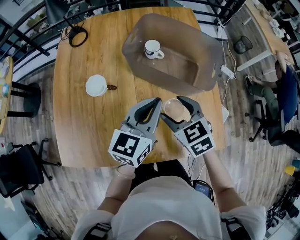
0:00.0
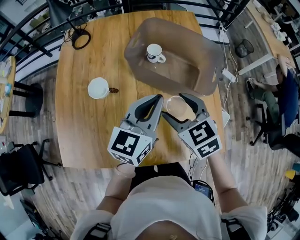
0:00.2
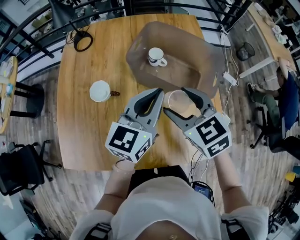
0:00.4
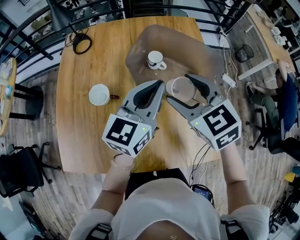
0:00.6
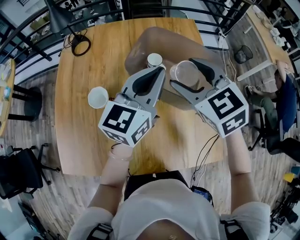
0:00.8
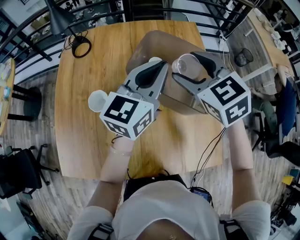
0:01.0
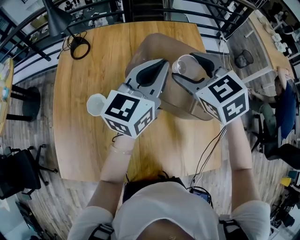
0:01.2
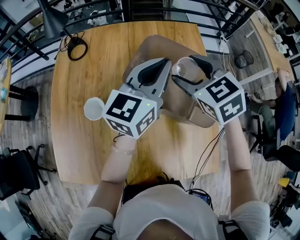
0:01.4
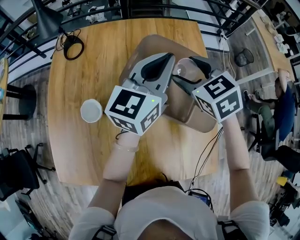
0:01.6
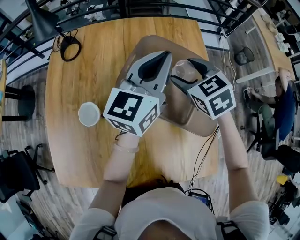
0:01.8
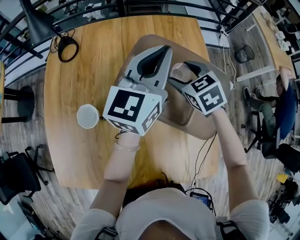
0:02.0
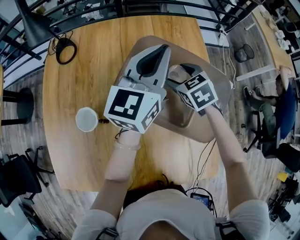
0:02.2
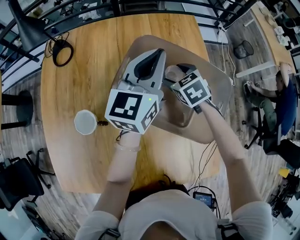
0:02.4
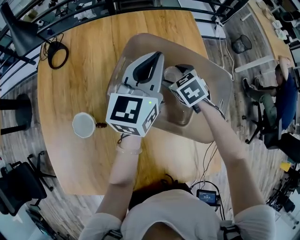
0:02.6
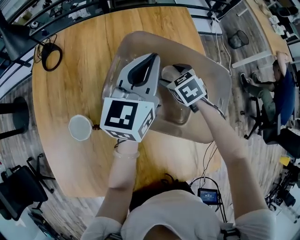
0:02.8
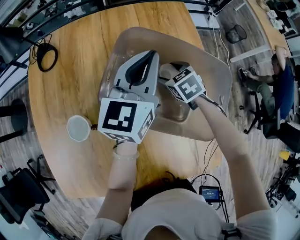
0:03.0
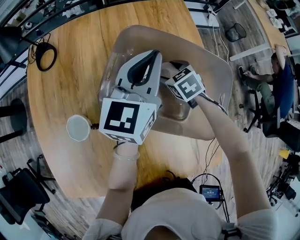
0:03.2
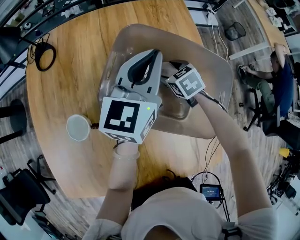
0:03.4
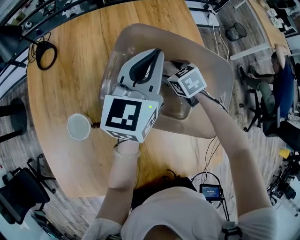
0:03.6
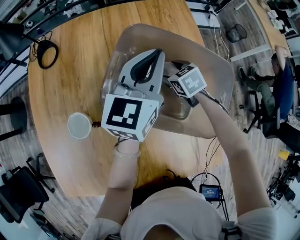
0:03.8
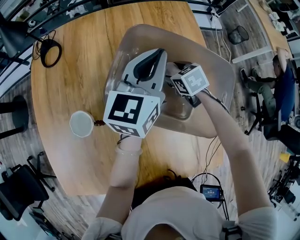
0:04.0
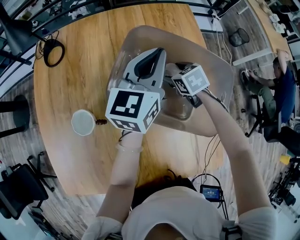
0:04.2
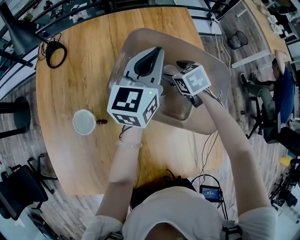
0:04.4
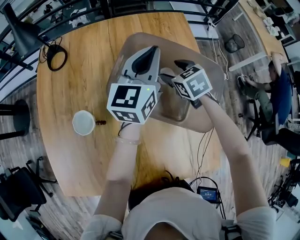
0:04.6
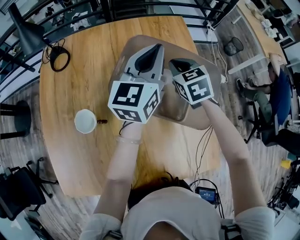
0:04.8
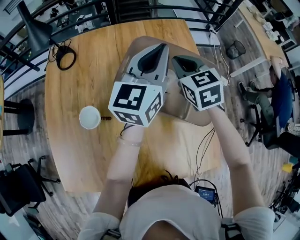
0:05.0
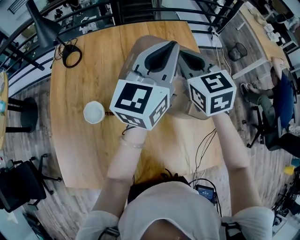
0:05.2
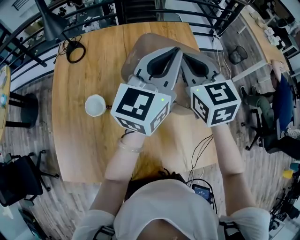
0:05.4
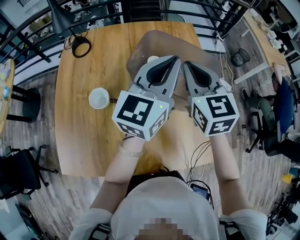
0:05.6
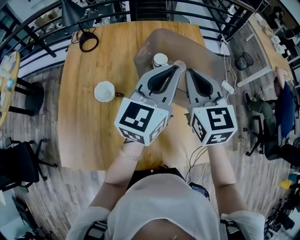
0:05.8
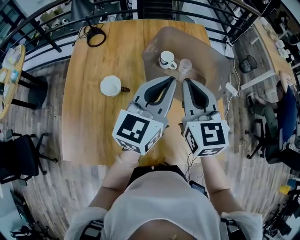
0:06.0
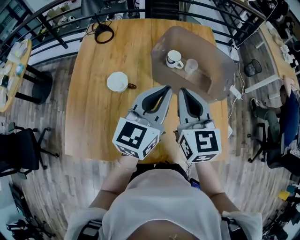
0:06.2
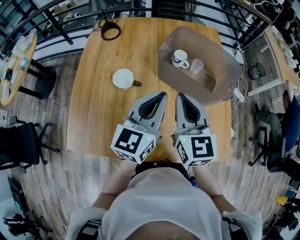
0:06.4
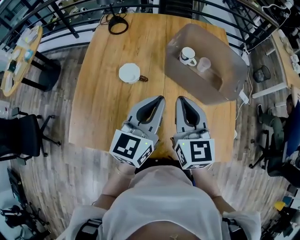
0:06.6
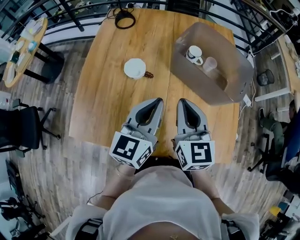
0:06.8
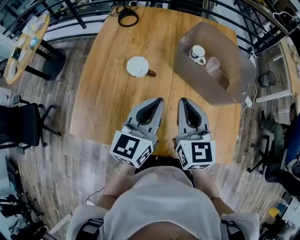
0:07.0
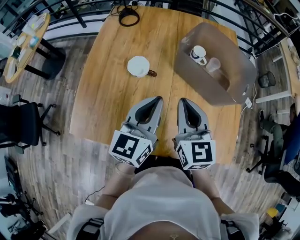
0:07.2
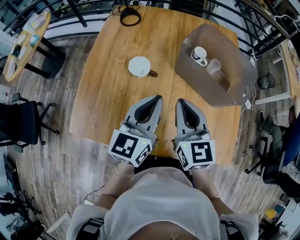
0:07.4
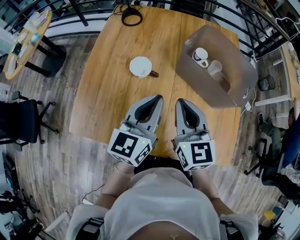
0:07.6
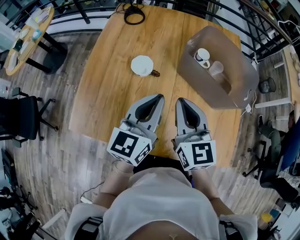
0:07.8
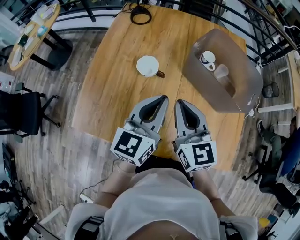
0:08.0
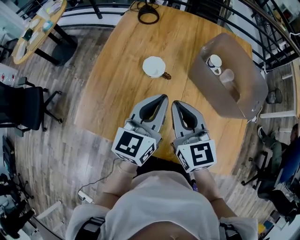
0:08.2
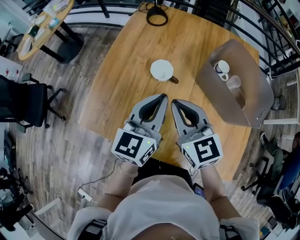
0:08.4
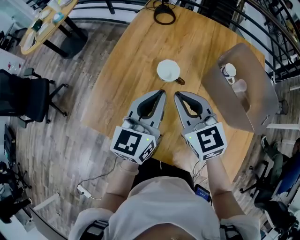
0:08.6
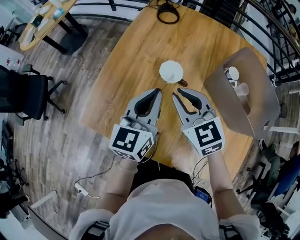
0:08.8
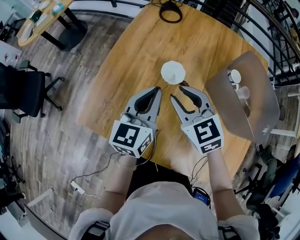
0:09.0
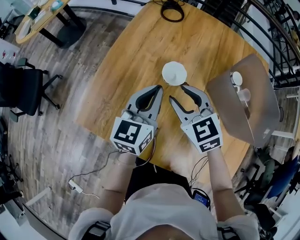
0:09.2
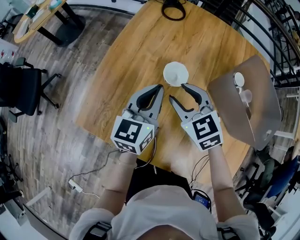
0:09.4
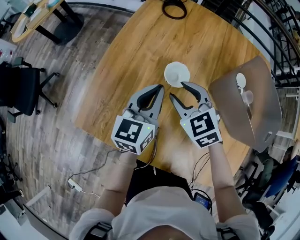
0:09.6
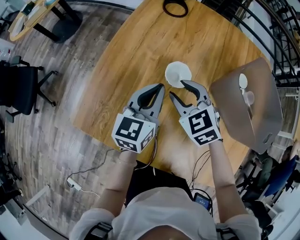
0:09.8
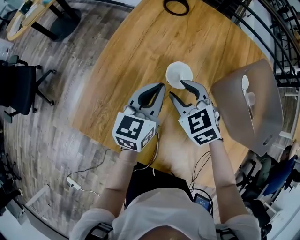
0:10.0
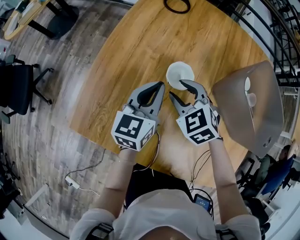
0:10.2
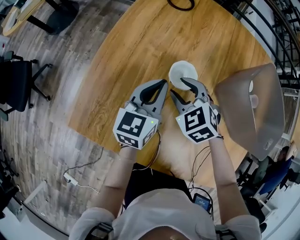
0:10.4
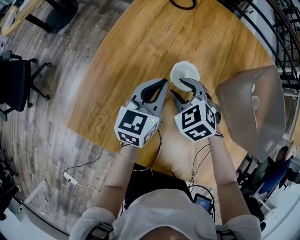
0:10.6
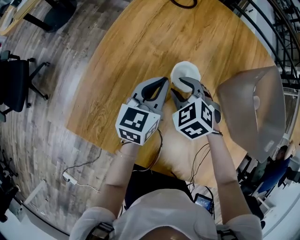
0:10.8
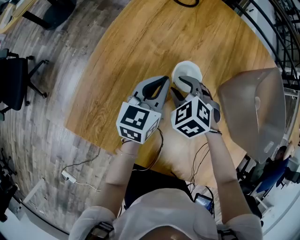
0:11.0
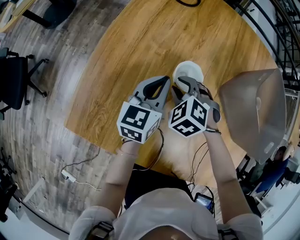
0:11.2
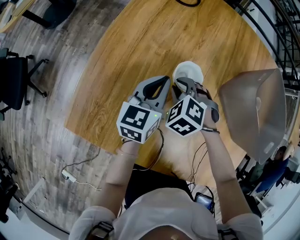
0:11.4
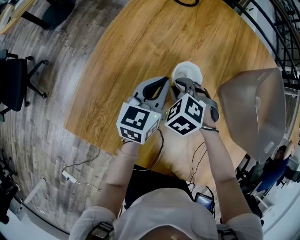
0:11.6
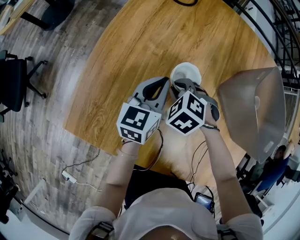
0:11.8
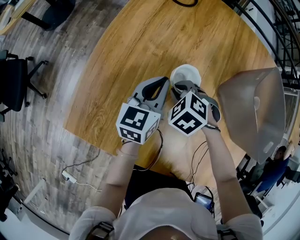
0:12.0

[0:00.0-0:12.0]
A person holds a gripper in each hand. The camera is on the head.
0:00.0 to 0:01.6: The right gripper travels forward by some 25 cm; the left gripper moves forward and upward, approximately 25 cm.
0:01.6 to 0:03.0: The right gripper travels downward by some 20 cm, and changes its angle by some 20 degrees. The left gripper goes approximately 5 cm downward.
0:03.0 to 0:04.4: The grippers stay close to where they were, moving slightly.
0:04.4 to 0:06.0: The left gripper goes some 25 cm backward. The right gripper heads upward and backward, covering approximately 35 cm, angles its fingers upward, by roughly 50 degrees, and closes.
0:06.0 to 0:07.6: Both grippers move to the left, backward and downward, about 15 cm.
0:07.6 to 0:09.0: The left gripper moves to the left and forward, some 15 cm. Meanwhile the right gripper goes some 15 cm to the left, forward and downward, and turns by approximately 40 degrees.
0:09.0 to 0:10.4: The two grippers go about 15 cm downward and forward. The right gripper turns by about 30 degrees.
0:10.4 to 0:12.0: The right gripper goes approximately 5 cm downward, swivels roughly 20 degrees, and closes up.

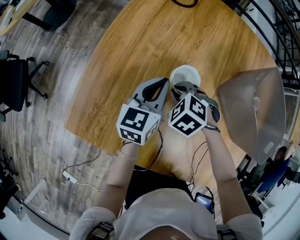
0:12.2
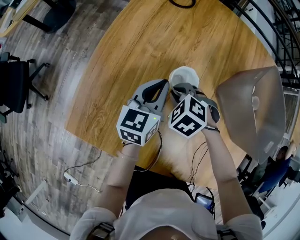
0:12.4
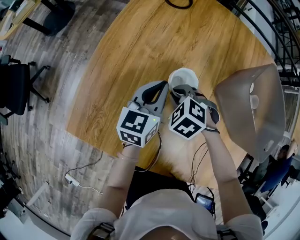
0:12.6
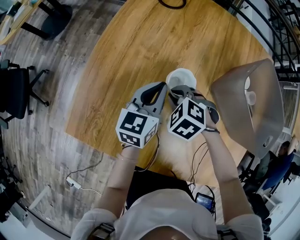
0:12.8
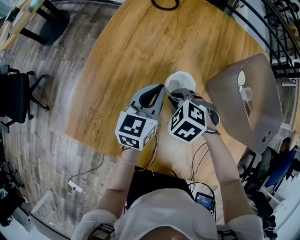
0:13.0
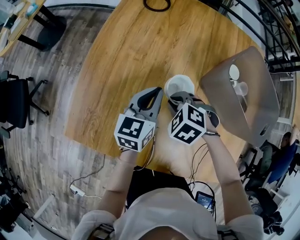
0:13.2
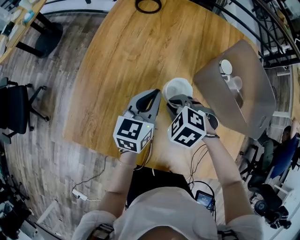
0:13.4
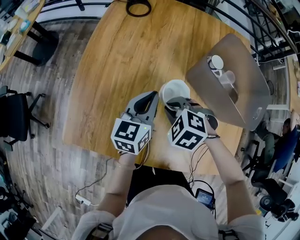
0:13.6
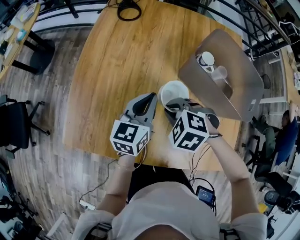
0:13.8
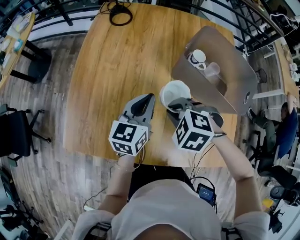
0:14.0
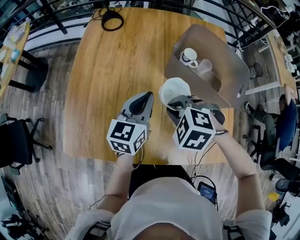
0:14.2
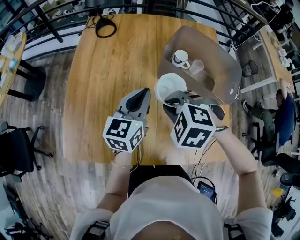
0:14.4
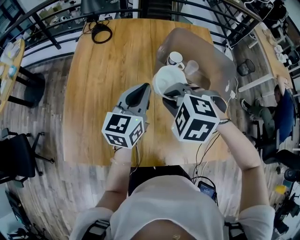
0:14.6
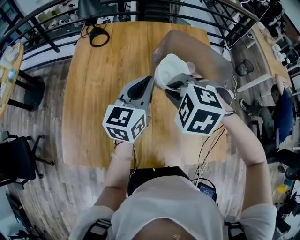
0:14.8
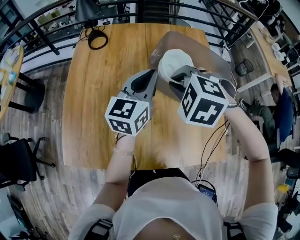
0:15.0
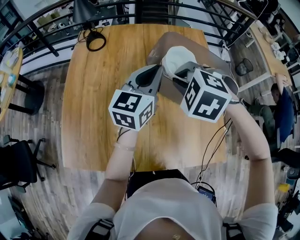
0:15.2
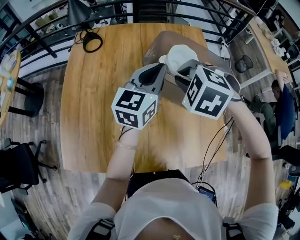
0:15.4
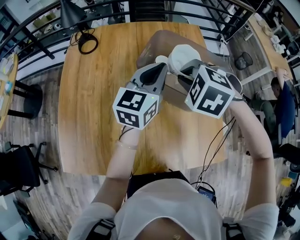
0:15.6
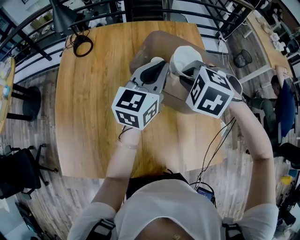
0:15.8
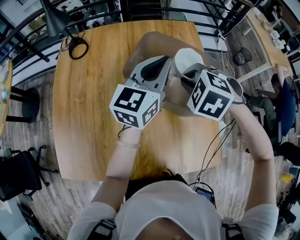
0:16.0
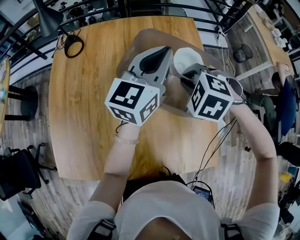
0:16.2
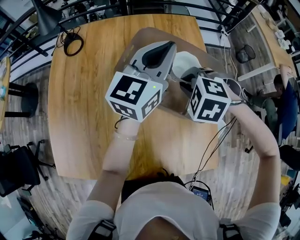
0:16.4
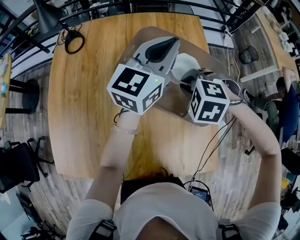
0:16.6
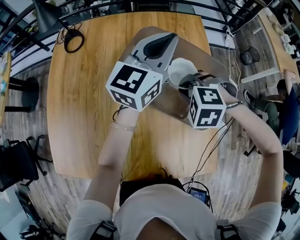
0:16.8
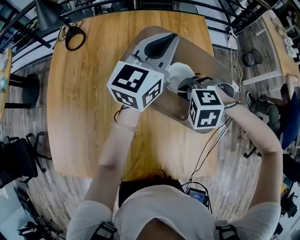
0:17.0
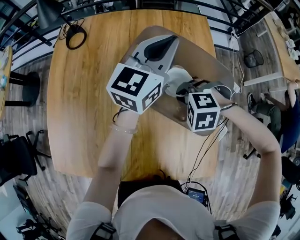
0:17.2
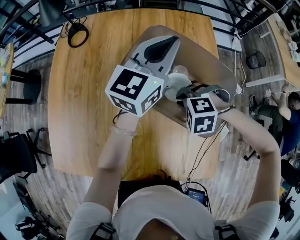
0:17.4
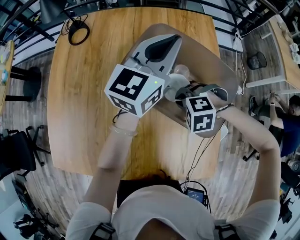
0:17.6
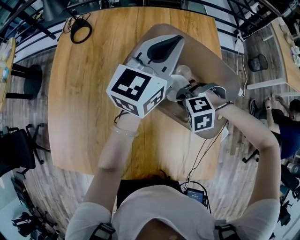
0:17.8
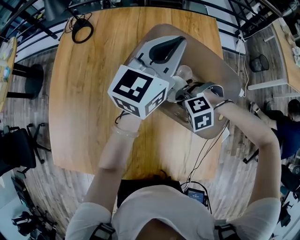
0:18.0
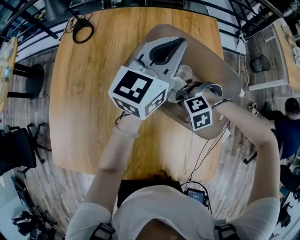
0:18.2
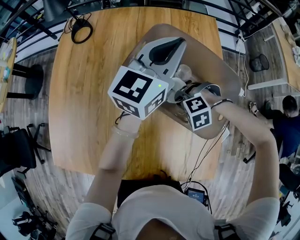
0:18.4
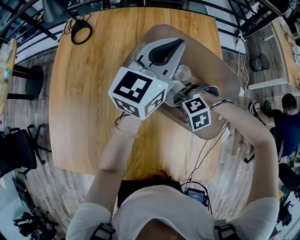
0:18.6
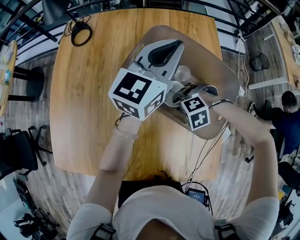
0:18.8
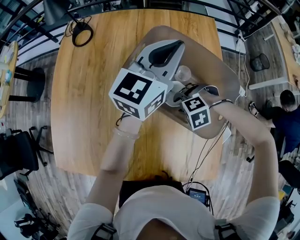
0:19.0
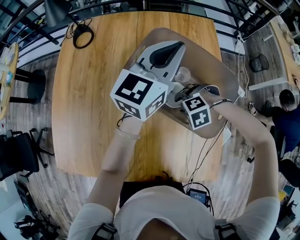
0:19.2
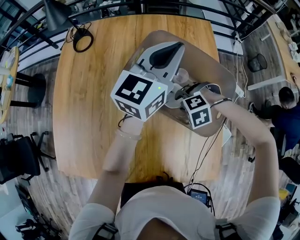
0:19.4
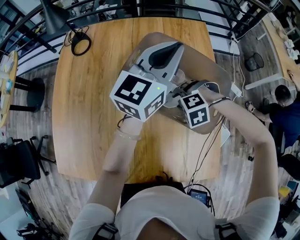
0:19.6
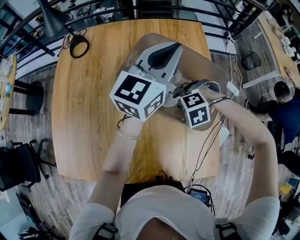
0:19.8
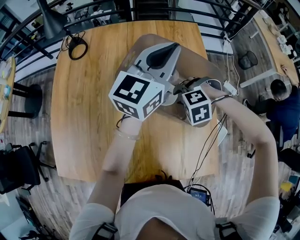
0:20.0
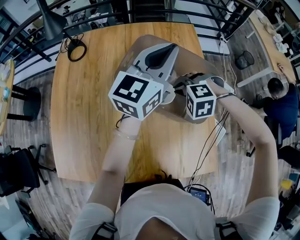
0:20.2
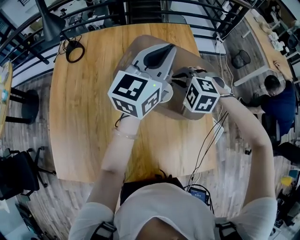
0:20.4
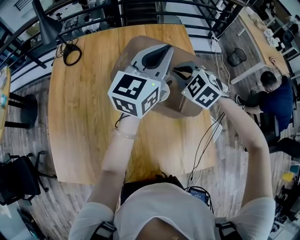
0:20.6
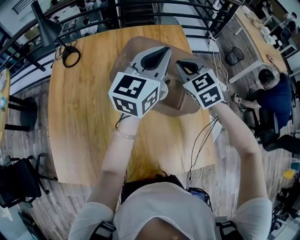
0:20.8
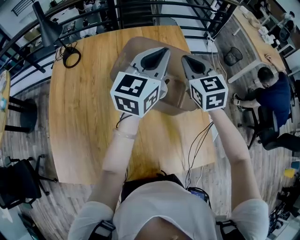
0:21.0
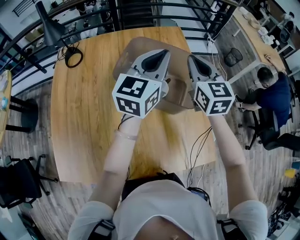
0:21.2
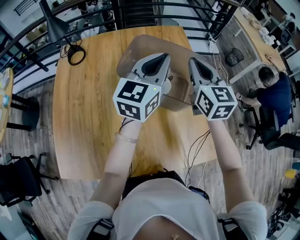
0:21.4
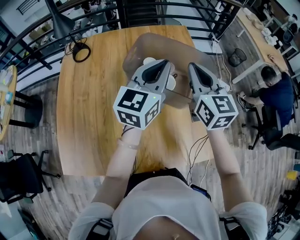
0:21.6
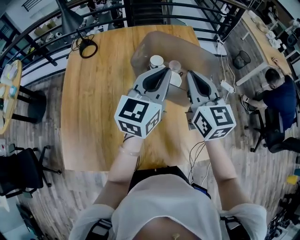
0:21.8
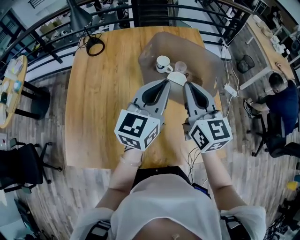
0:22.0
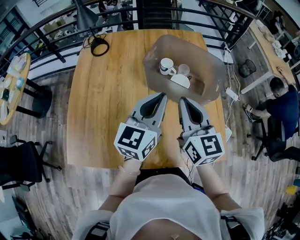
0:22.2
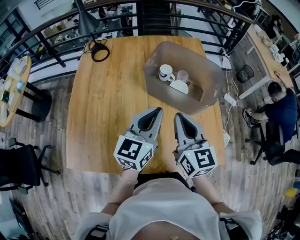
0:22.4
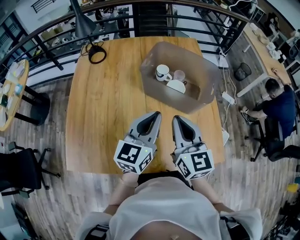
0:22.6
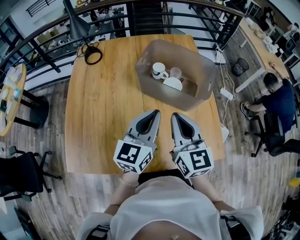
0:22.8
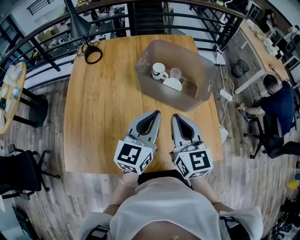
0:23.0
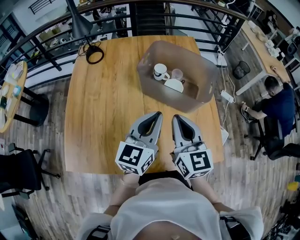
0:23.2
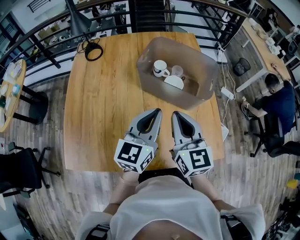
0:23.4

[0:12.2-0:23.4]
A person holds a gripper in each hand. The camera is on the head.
0:12.2 to 0:13.8: The left gripper heads backward, to the right and upward, covering approximately 15 cm, while the right gripper shifts approximately 20 cm backward, upward and to the right.
0:13.8 to 0:15.4: The right gripper moves upward, to the right and forward, about 25 cm. The left gripper is displaced to the right, upward and forward by roughly 25 cm, and turns by about 20 degrees.
0:15.4 to 0:17.0: The right gripper heads downward and to the right, covering some 20 cm, and rotates about 20 degrees. Meanwhile the left gripper goes approximately 15 cm forward and to the right.
0:17.0 to 0:18.6: The right gripper is displaced downward by about 10 cm, and rotates roughly 20 degrees.
0:18.6 to 0:20.2: The left gripper shifts by some 10 cm, while the right gripper goes approximately 10 cm upward, and swivels approximately 20 degrees.
0:20.2 to 0:21.8: The right gripper shifts about 20 cm upward and backward, and angles its fingers upward, by approximately 60 degrees, while the left gripper is displaced backward by approximately 15 cm.
0:21.8 to 0:23.4: The right gripper moves backward, roughly 10 cm. Meanwhile the left gripper shifts roughly 10 cm backward and downward.
